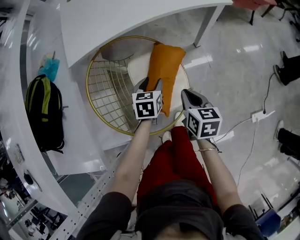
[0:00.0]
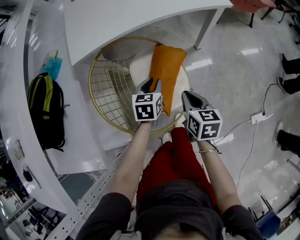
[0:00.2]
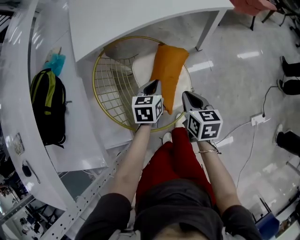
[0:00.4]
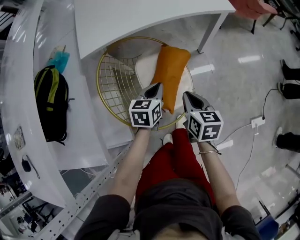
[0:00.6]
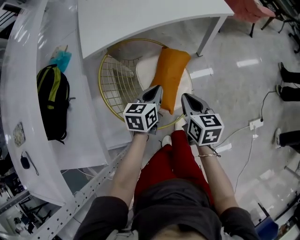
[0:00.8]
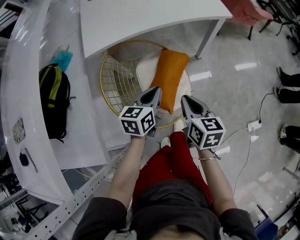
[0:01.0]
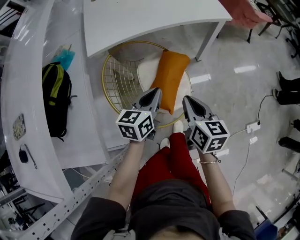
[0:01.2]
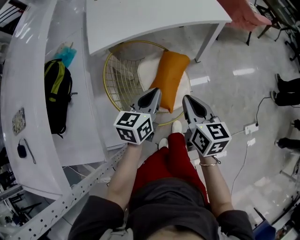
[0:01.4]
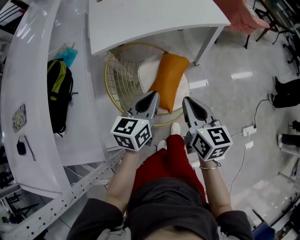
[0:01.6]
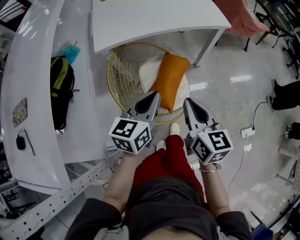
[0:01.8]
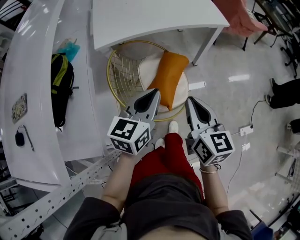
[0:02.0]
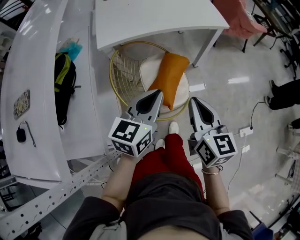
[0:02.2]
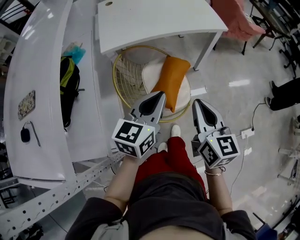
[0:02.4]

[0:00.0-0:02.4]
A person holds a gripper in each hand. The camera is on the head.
0:00.0 to 0:01.2: The two grippers go roughly 15 cm upward and backward. The left gripper turns by about 30 degrees, and closes.
0:01.2 to 0:02.4: Both grippers move upward and backward, roughly 15 cm.

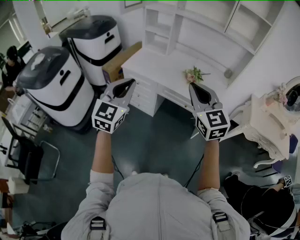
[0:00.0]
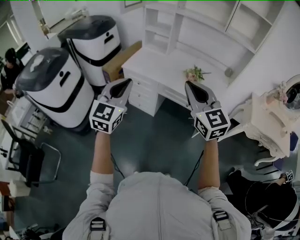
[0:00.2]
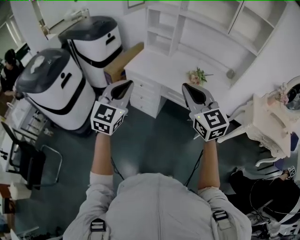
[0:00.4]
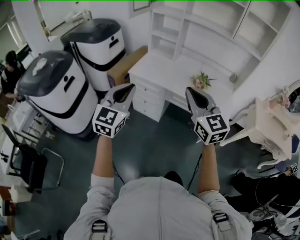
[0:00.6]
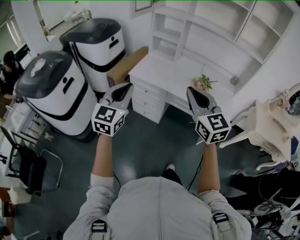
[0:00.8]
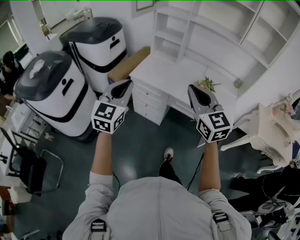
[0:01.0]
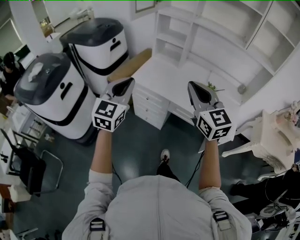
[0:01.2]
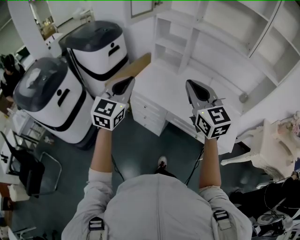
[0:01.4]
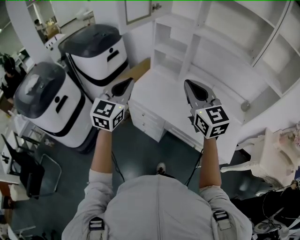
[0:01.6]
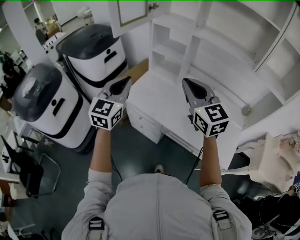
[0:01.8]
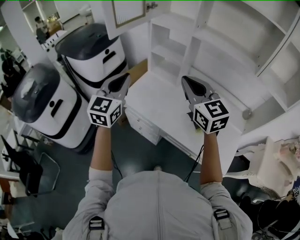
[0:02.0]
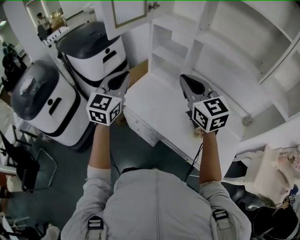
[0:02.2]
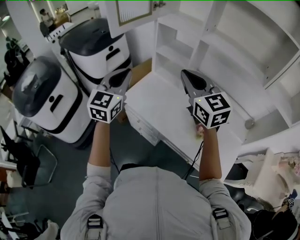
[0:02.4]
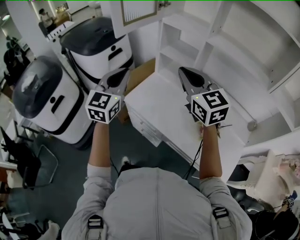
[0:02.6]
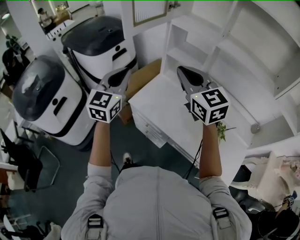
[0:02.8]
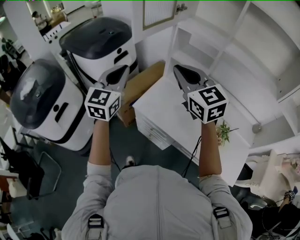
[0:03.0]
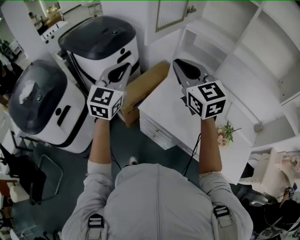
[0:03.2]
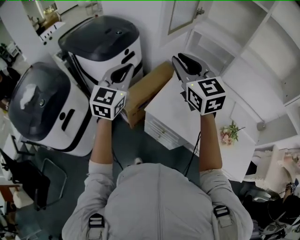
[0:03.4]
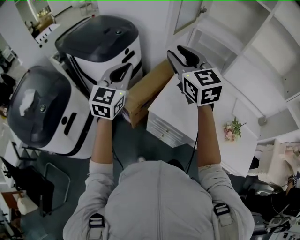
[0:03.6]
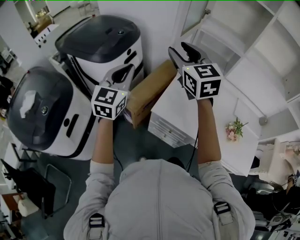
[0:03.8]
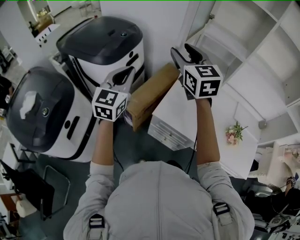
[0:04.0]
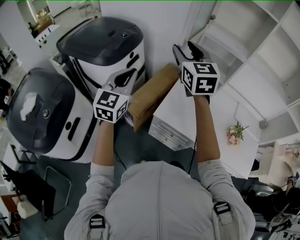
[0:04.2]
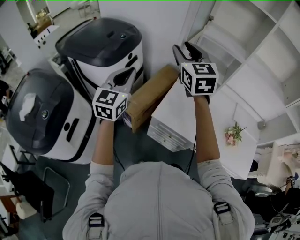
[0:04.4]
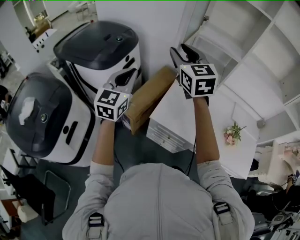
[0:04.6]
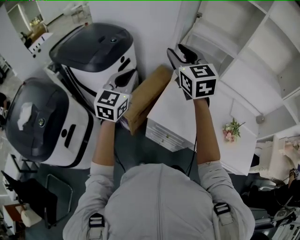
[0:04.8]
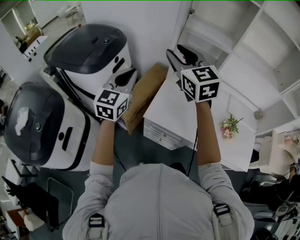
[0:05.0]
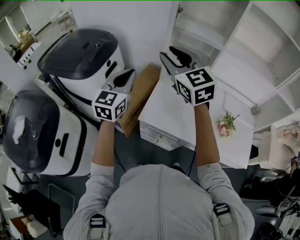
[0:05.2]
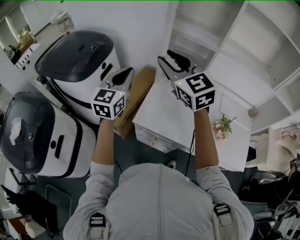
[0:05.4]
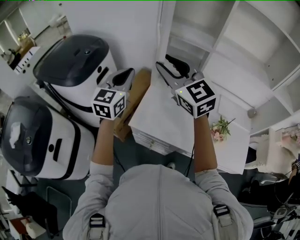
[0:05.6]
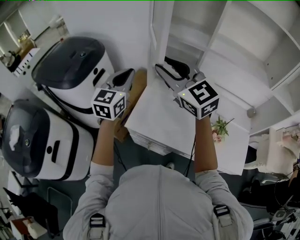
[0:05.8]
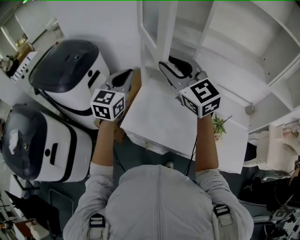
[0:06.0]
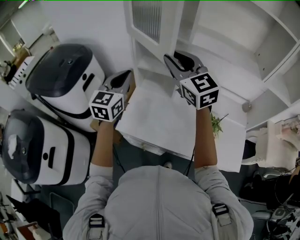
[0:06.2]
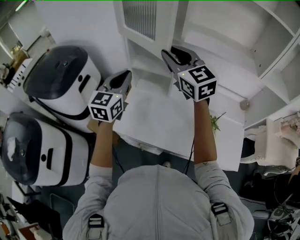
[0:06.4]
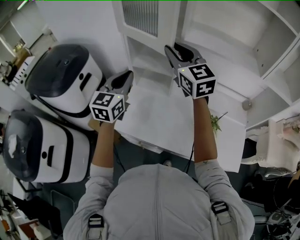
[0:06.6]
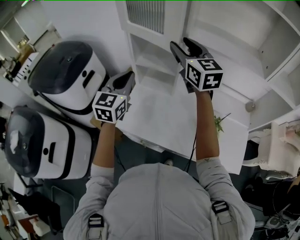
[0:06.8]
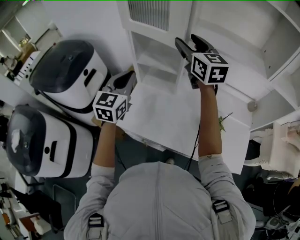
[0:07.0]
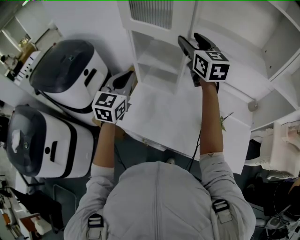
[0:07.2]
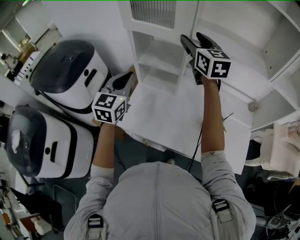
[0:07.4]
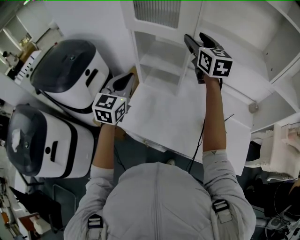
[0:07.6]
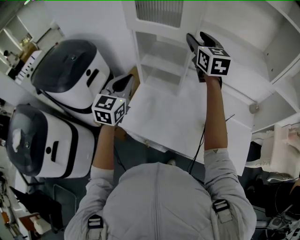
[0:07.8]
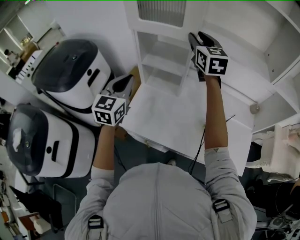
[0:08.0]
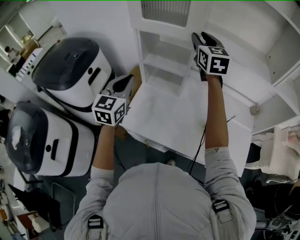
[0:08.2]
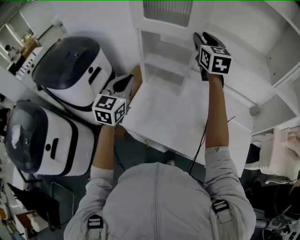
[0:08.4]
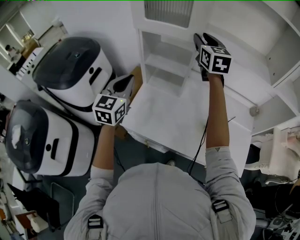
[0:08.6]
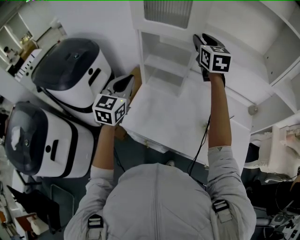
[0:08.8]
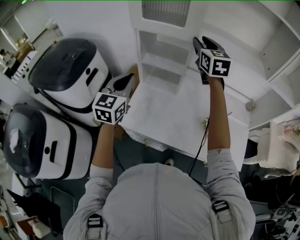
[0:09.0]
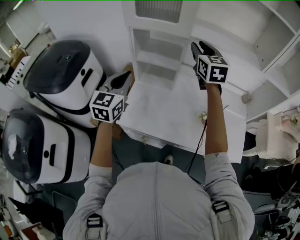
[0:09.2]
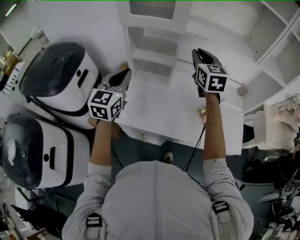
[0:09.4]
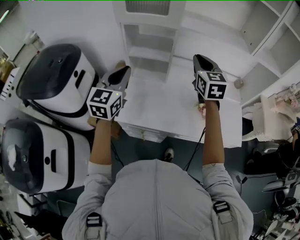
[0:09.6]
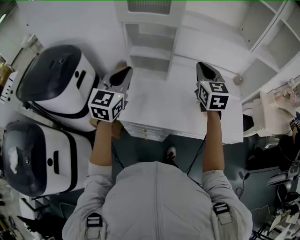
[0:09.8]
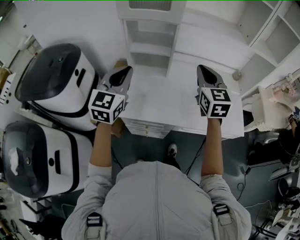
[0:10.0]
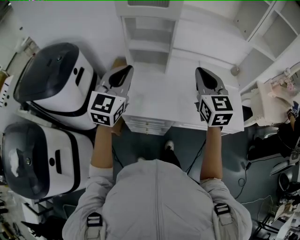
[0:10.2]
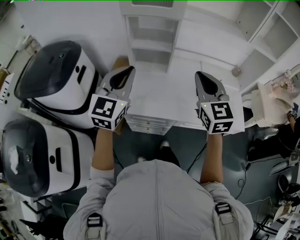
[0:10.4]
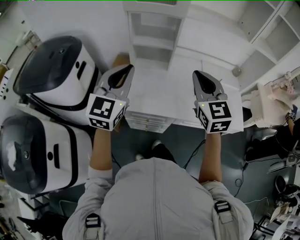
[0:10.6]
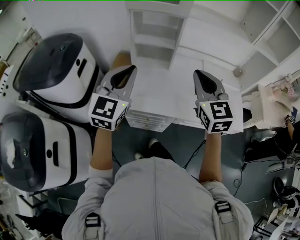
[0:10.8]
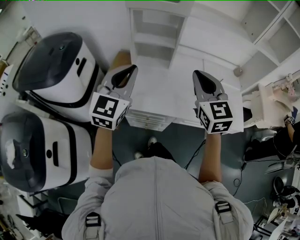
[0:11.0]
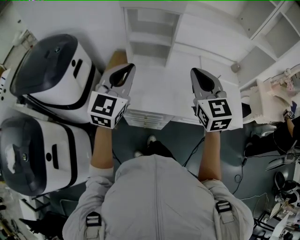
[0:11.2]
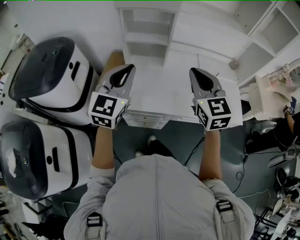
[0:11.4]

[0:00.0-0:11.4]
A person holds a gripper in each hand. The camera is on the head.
0:00.0 to 0:01.4: Both grippers move forward, about 25 cm.
0:01.4 to 0:02.8: The grippers both shift forward by roughly 25 cm.
0:02.8 to 0:04.2: Both grippers move to the left and forward, approximately 25 cm. The right gripper turns by about 20 degrees, and opens its fingers.
0:04.2 to 0:05.6: The left gripper heads to the right and forward, covering some 20 cm, while the right gripper goes roughly 10 cm to the right.
0:05.6 to 0:07.2: The right gripper shifts approximately 30 cm to the right and forward, swivels some 30 degrees, and opens up. The left gripper heads to the right, covering some 15 cm.
0:07.2 to 0:08.6: The right gripper closes its fingers.
0:08.6 to 0:10.0: The left gripper heads backward, covering approximately 10 cm. The right gripper travels backward by about 25 cm, and closes up.
0:10.0 to 0:11.4: The right gripper moves backward, some 5 cm.

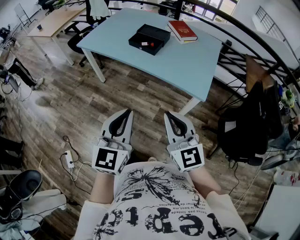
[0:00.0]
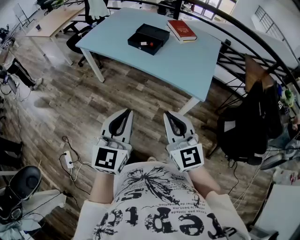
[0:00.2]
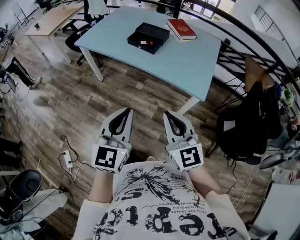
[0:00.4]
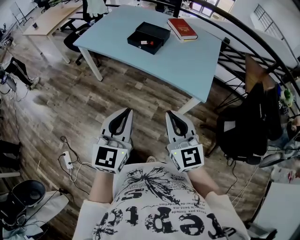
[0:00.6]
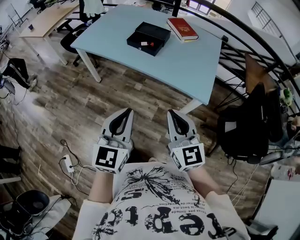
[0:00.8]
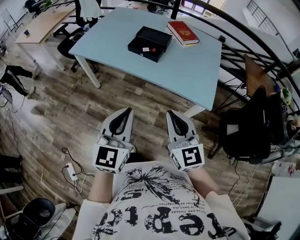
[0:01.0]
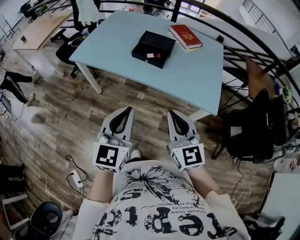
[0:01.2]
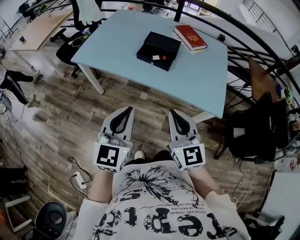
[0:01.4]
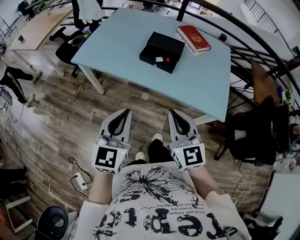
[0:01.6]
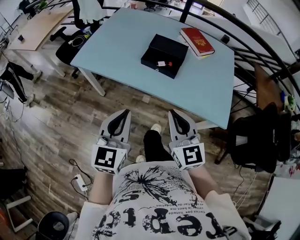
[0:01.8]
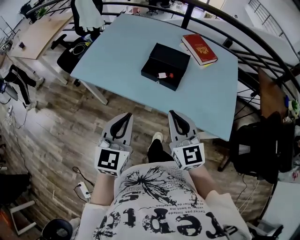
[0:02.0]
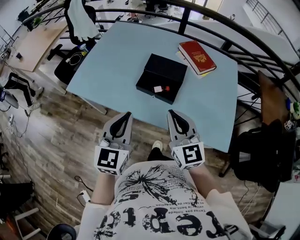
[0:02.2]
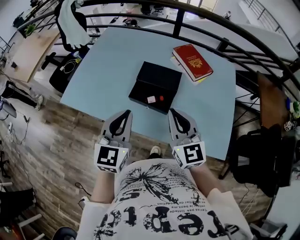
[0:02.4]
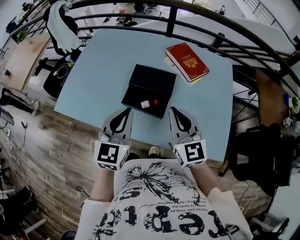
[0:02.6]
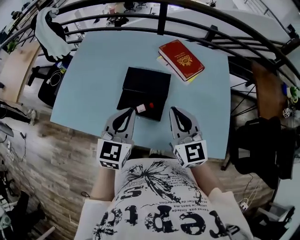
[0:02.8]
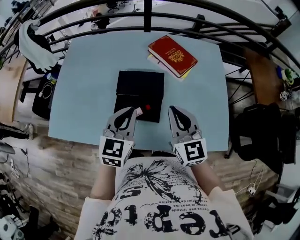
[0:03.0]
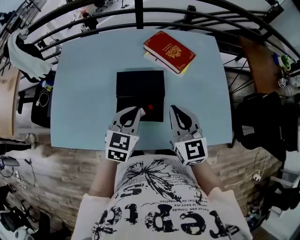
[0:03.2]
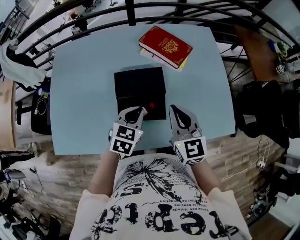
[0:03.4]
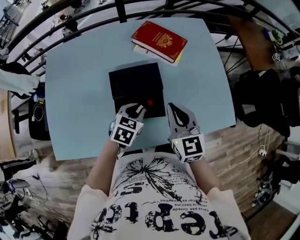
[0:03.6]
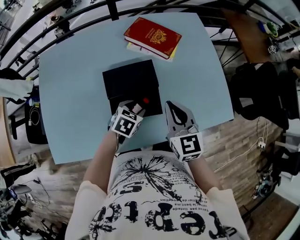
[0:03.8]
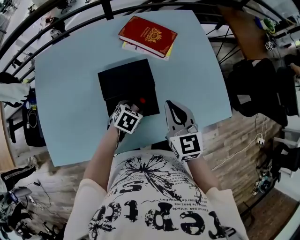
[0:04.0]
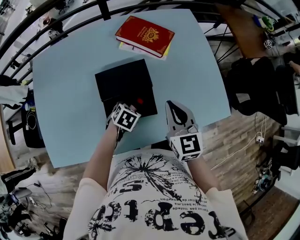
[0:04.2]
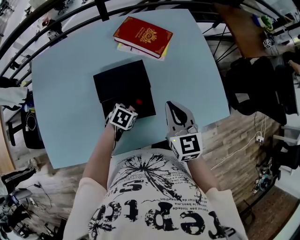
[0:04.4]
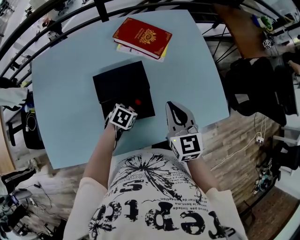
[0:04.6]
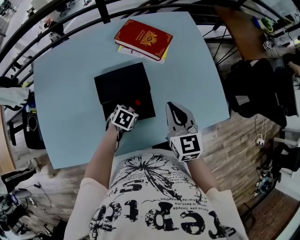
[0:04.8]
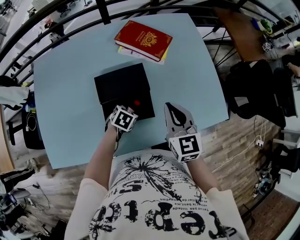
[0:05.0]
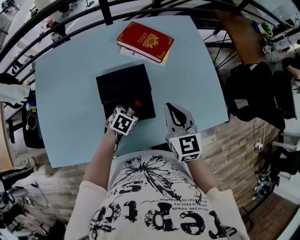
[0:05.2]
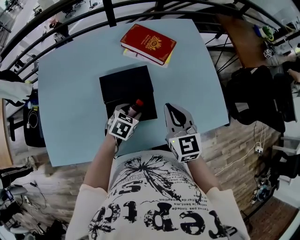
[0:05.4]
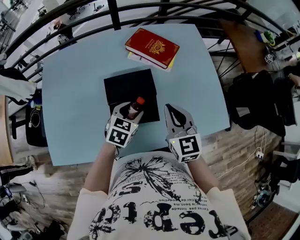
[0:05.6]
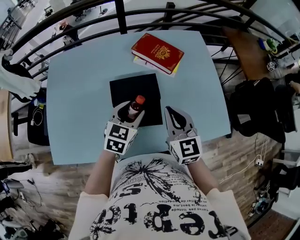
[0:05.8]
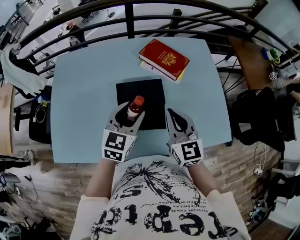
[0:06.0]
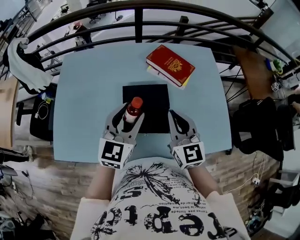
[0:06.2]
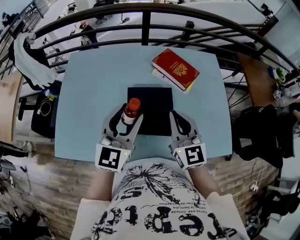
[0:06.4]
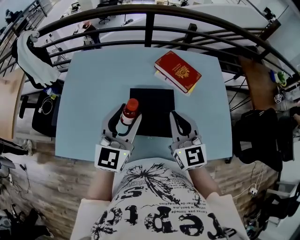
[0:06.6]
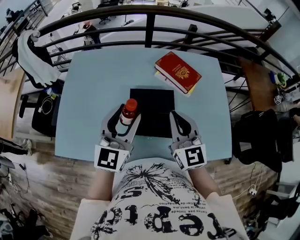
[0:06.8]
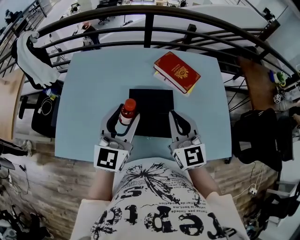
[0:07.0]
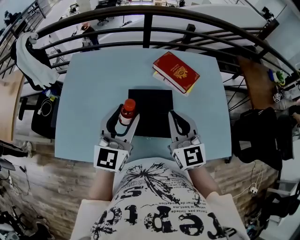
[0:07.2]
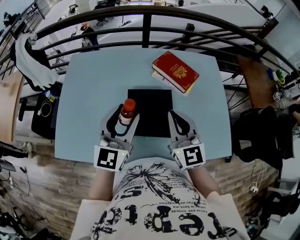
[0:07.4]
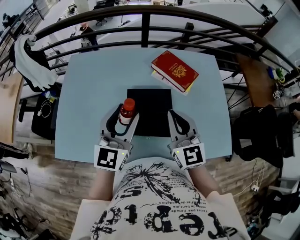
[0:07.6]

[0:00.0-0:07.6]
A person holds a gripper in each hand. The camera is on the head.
0:00.0 to 0:01.6: The grippers both shift forward and to the left by about 30 cm.
0:01.6 to 0:03.0: Both grippers travel together forward, approximately 40 cm. The left gripper rotates about 20 degrees.
0:03.0 to 0:04.6: The right gripper travels downward by some 5 cm, and rotates approximately 30 degrees; the left gripper is displaced downward by roughly 25 cm, angles its fingers downward, by approximately 40 degrees, and opens its fingers.
0:04.6 to 0:06.0: The right gripper moves roughly 10 cm, while the left gripper travels upward by about 25 cm, and points its fingers some 40 degrees further upward.
0:06.0 to 0:07.6: The left gripper is displaced upward and to the left by about 10 cm, and turns by about 20 degrees, while the right gripper goes about 5 cm upward.

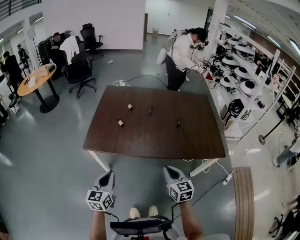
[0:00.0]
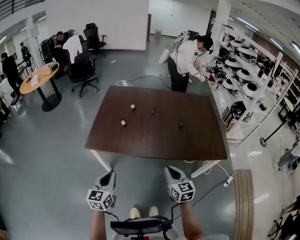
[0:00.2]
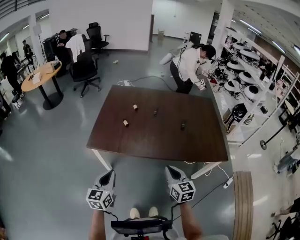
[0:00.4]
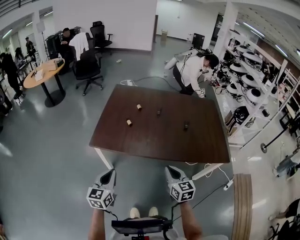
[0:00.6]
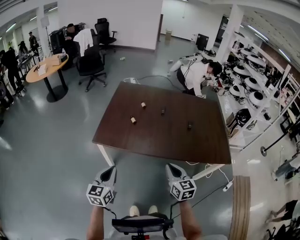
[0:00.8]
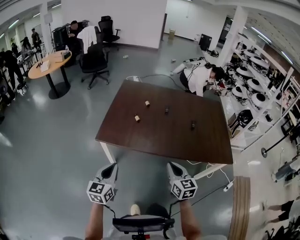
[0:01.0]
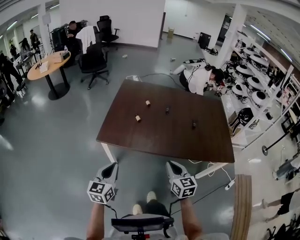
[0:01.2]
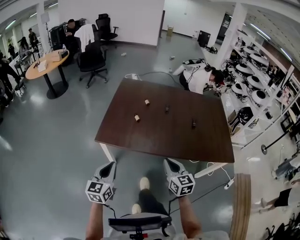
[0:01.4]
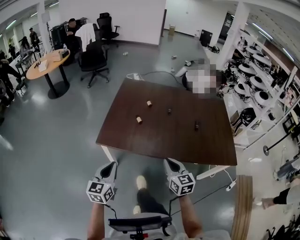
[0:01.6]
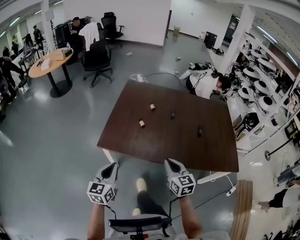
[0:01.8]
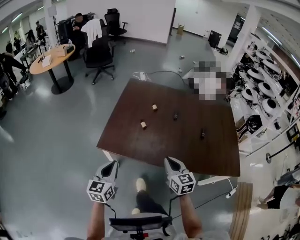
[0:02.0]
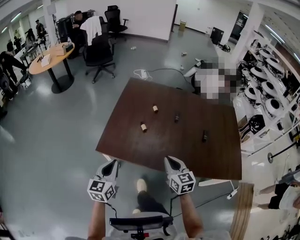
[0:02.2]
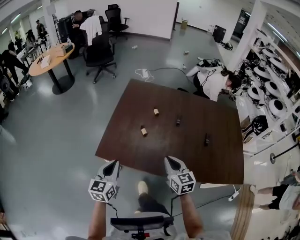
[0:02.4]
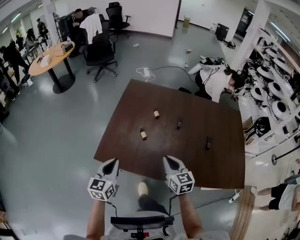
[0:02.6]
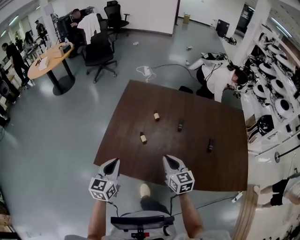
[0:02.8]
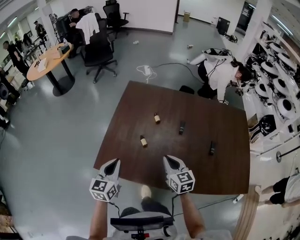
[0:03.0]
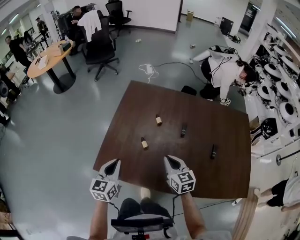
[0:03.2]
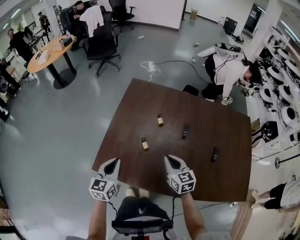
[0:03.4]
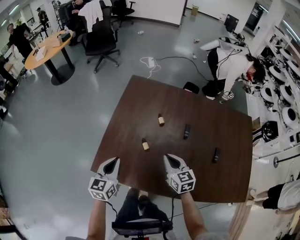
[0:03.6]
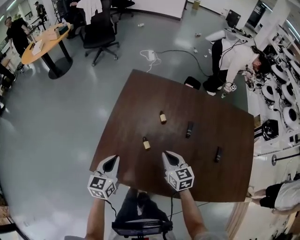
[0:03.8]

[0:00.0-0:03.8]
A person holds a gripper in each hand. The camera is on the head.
0:00.0 to 0:01.2: The grippers both shift to the left by about 10 cm.
0:01.2 to 0:02.6: Both grippers travel together forward, roughly 20 cm.
0:02.6 to 0:03.8: Both grippers move forward and downward, roughly 15 cm.
